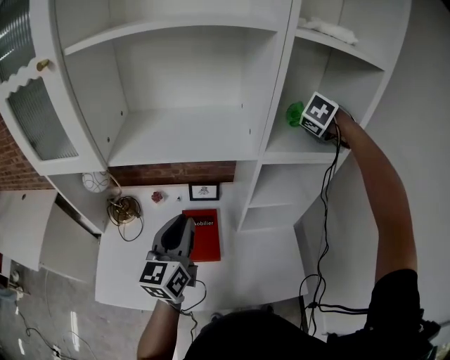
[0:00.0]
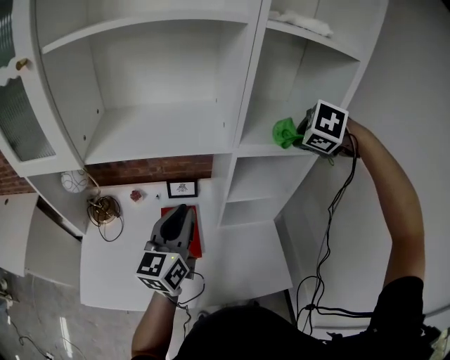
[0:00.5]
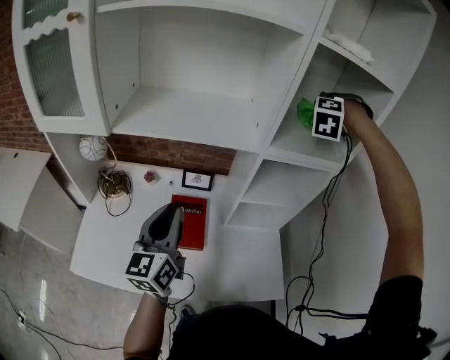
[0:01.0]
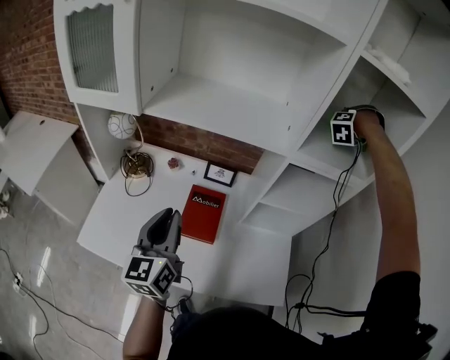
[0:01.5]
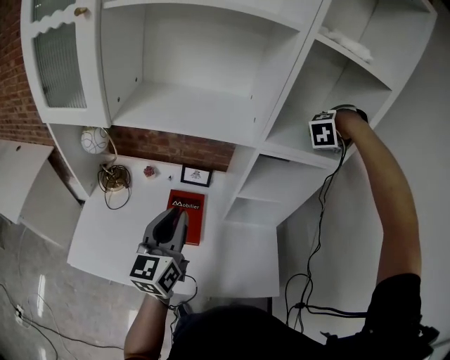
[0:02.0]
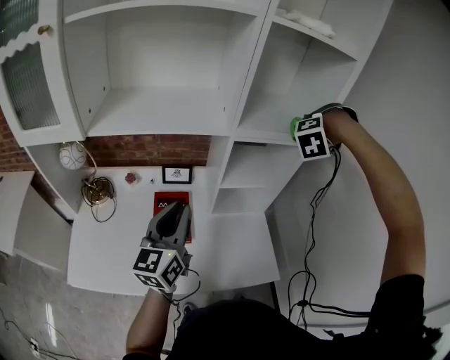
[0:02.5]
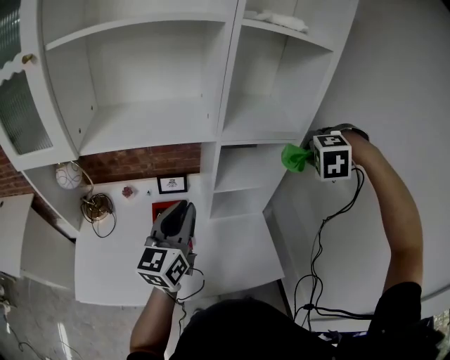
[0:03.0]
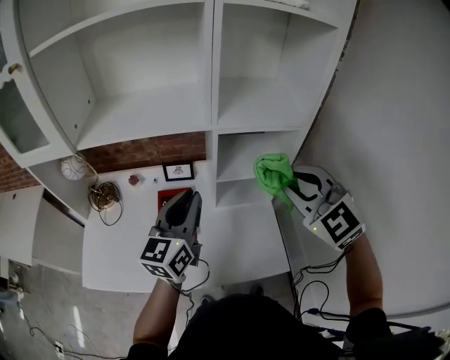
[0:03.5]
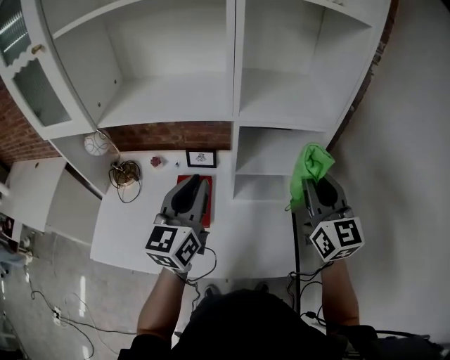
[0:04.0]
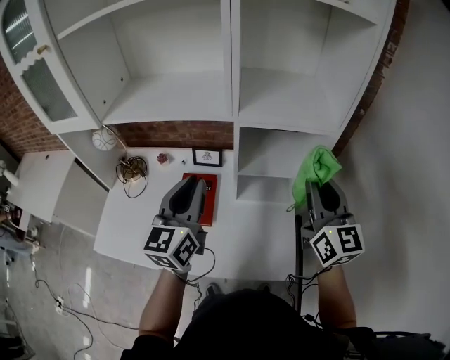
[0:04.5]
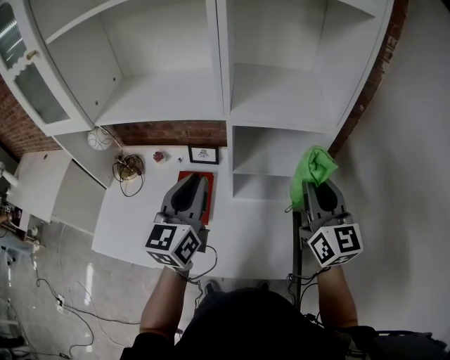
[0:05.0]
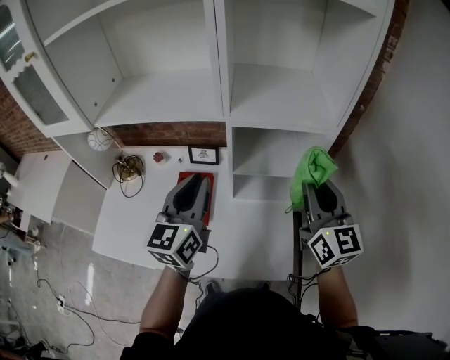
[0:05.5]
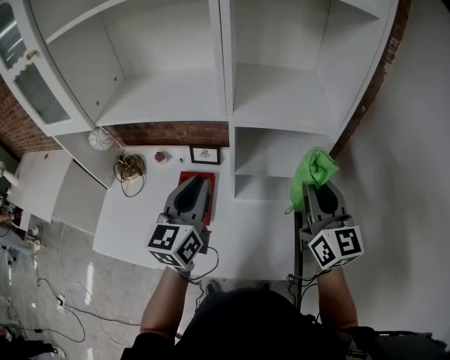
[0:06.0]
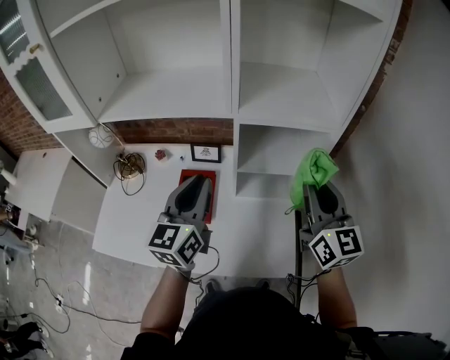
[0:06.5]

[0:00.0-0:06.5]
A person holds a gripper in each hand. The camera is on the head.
0:00.0 to 0:02.0: The right gripper goes forward and backward, about 20 cm each way, reversing 2 times, and rotates around the line of its fingers by some 50 degrees, counterclockwise from behind.
0:02.0 to 0:04.5: The left gripper shifts by about 10 cm. Meanwhile the right gripper changes place by about 20 cm, and tips its fingers upward by approximately 50 degrees.
0:04.5 to 0:06.5: The grippers move only a little.

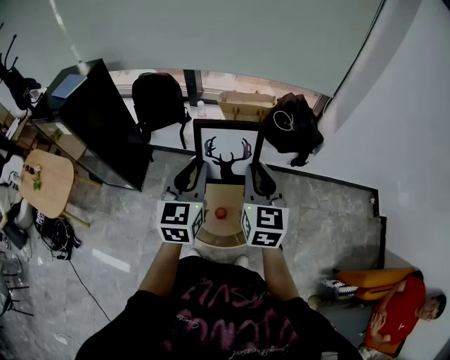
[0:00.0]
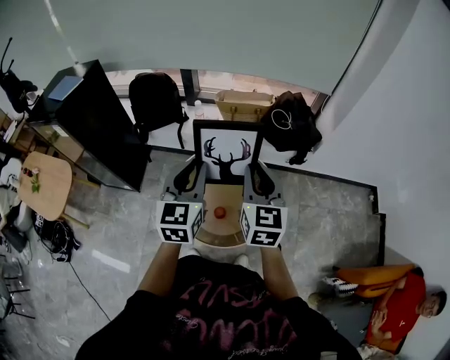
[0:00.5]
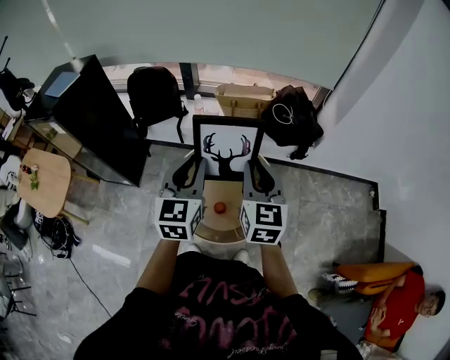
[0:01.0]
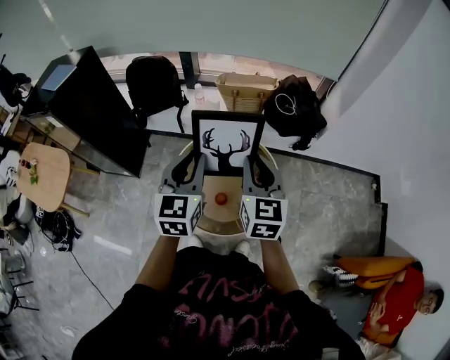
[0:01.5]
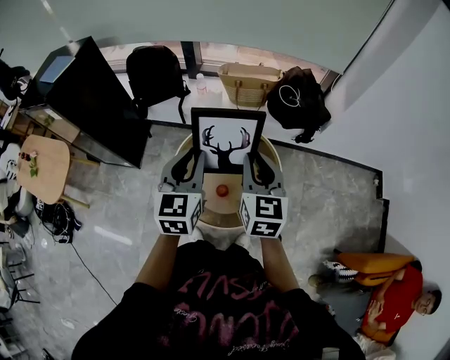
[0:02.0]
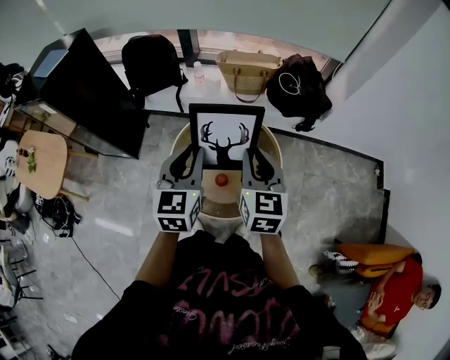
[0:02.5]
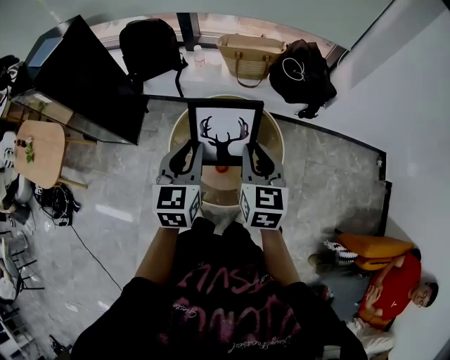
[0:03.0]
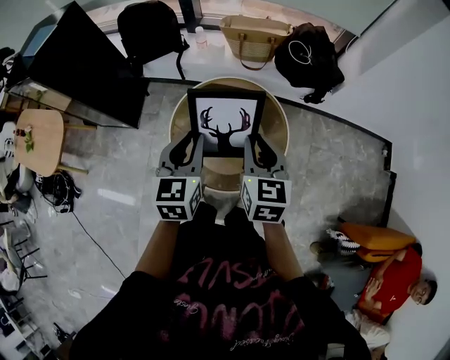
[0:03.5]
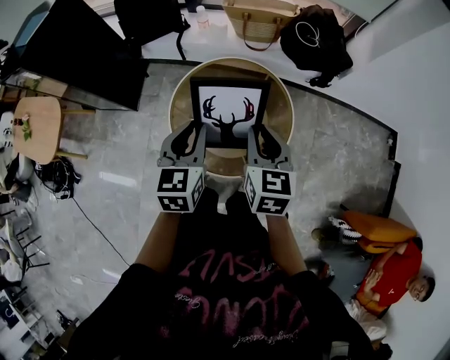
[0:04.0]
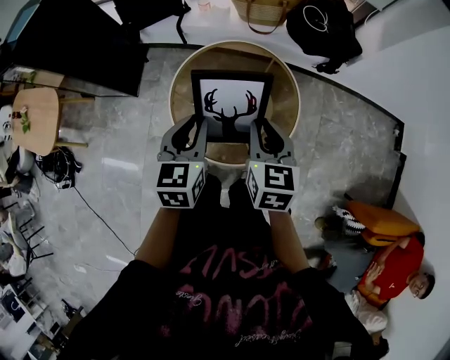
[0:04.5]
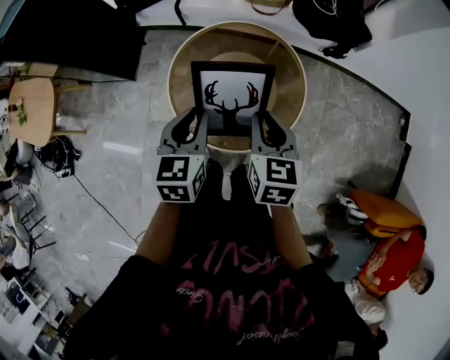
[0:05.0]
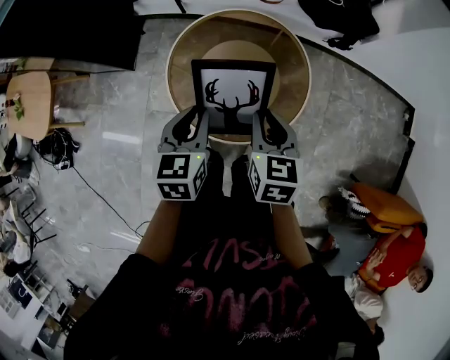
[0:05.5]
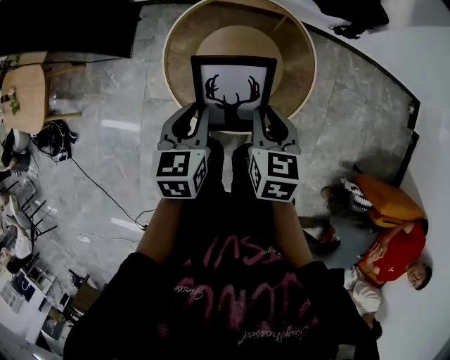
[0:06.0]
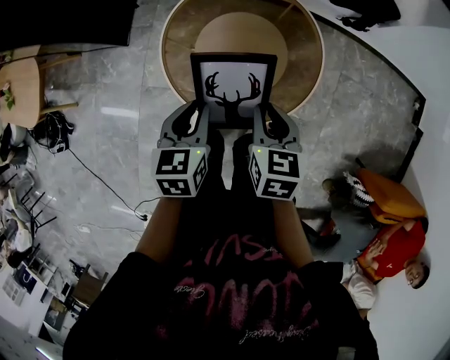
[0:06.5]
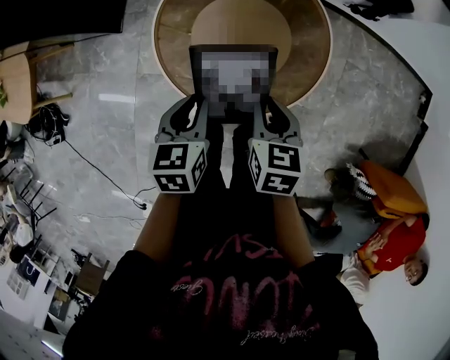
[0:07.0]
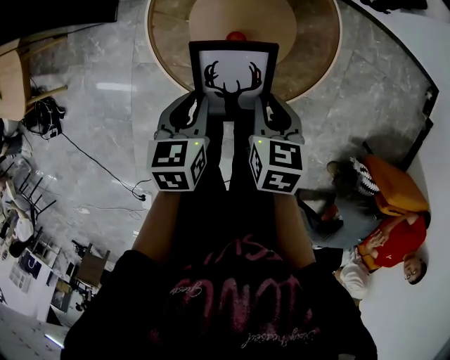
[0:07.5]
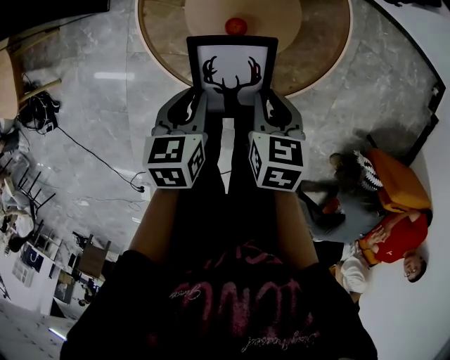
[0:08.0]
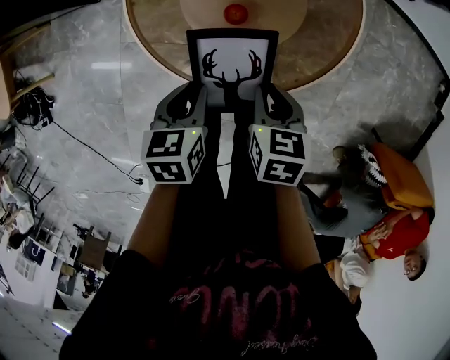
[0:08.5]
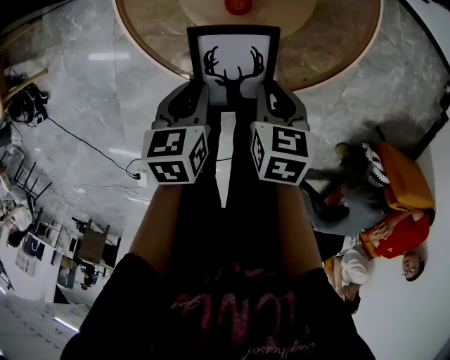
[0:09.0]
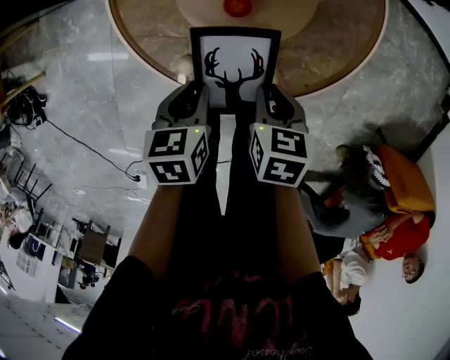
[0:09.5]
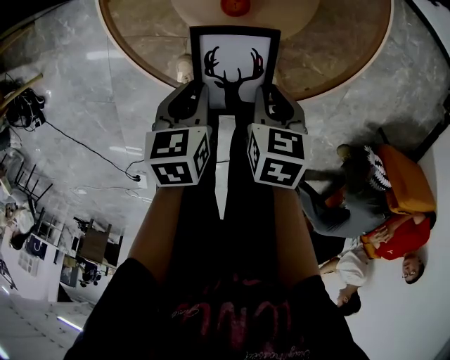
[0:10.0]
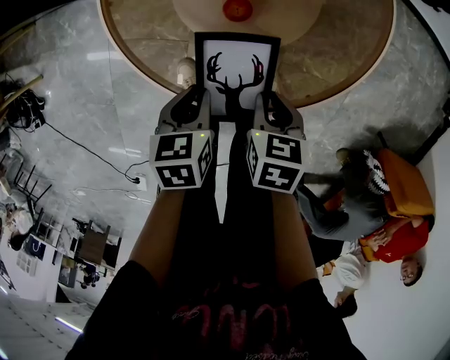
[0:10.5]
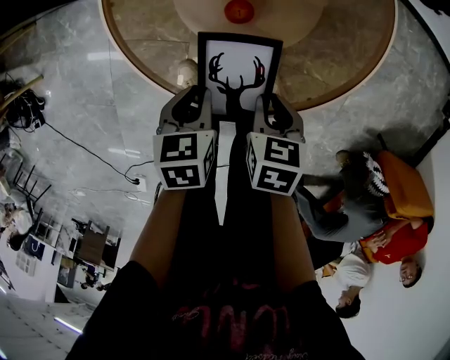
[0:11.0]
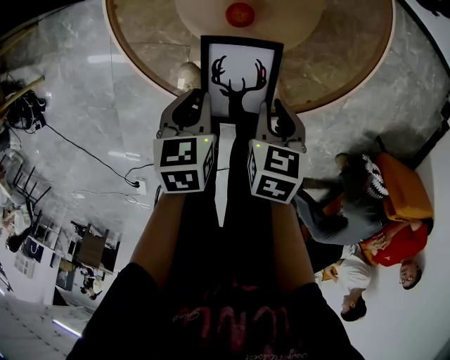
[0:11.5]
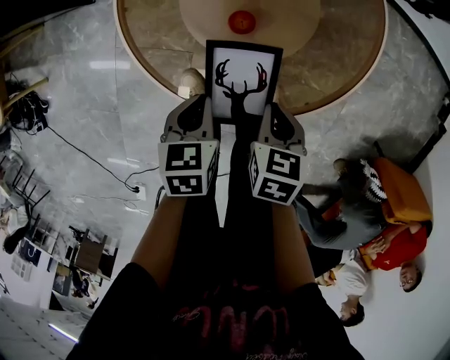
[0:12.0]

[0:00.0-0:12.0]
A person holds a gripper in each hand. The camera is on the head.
0:00.0 to 0:02.0: Both grippers travel together downward, about 5 cm.
0:02.0 to 0:04.0: Both grippers travel together downward, roughly 10 cm.
0:04.0 to 0:06.0: The grippers both shift downward by roughly 15 cm.
0:06.0 to 0:08.0: Both grippers move downward, about 15 cm.
0:08.0 to 0:10.0: Both grippers travel together downward, roughly 15 cm.
0:10.0 to 0:12.0: There are only small adjustments of the grippers.

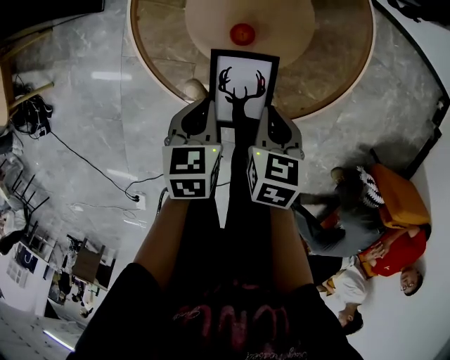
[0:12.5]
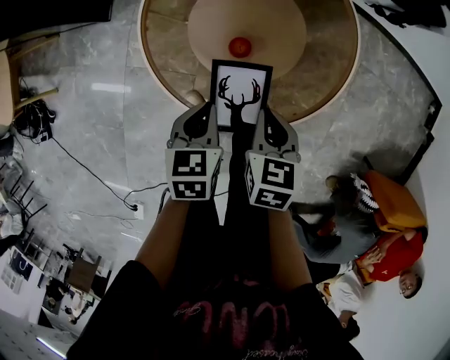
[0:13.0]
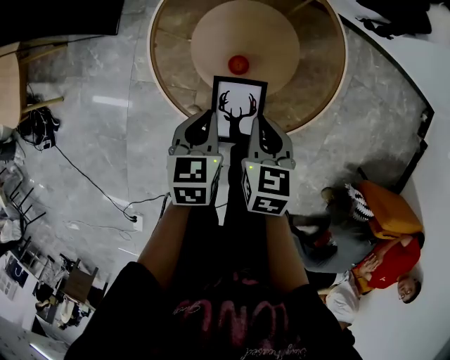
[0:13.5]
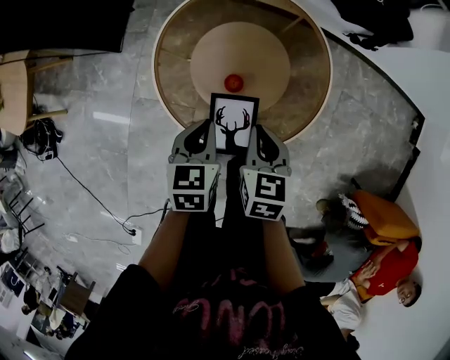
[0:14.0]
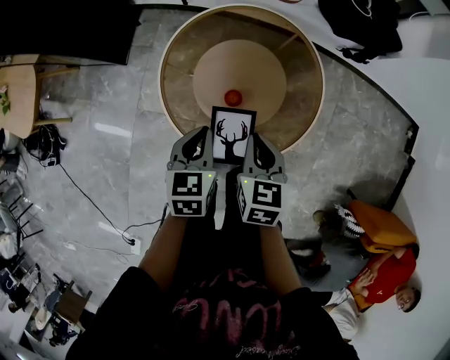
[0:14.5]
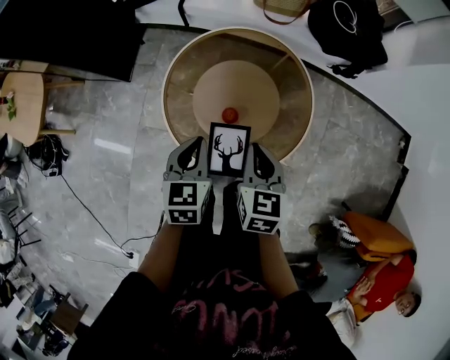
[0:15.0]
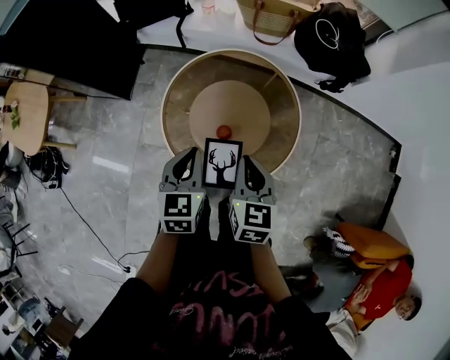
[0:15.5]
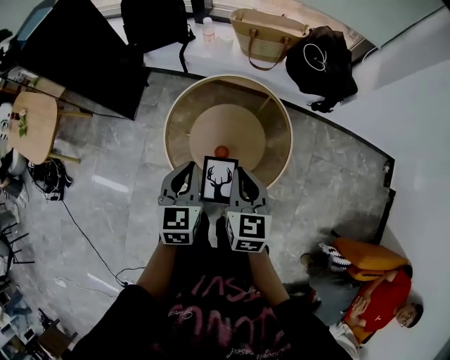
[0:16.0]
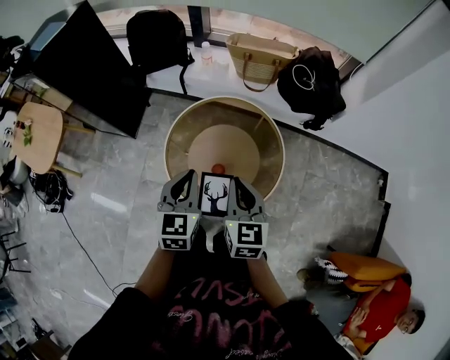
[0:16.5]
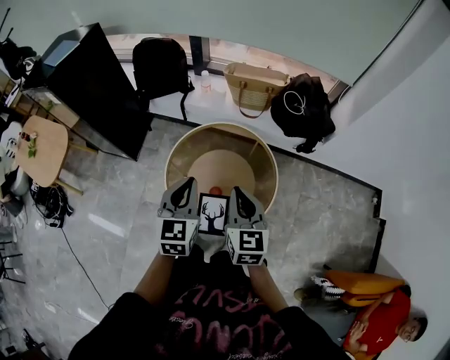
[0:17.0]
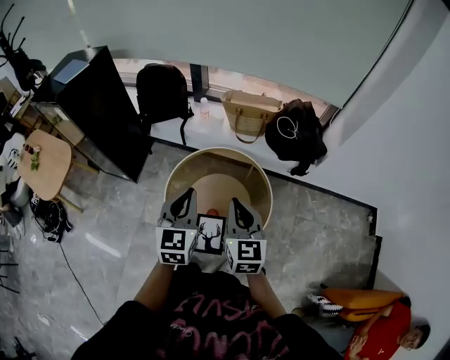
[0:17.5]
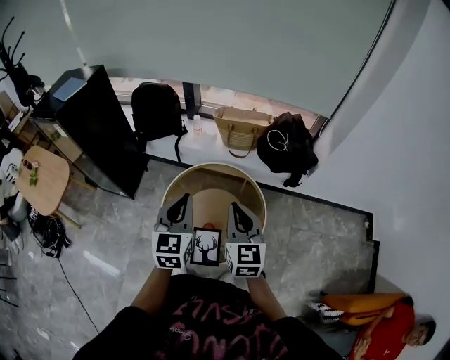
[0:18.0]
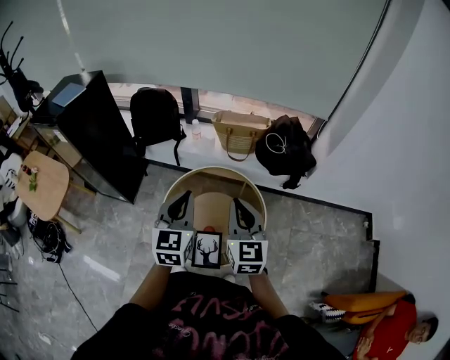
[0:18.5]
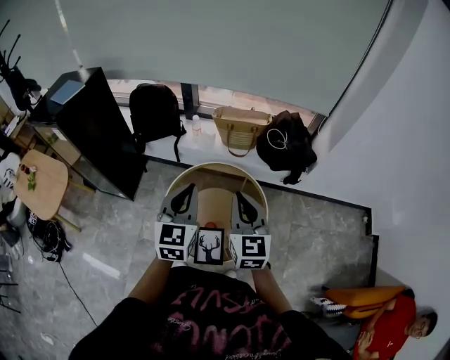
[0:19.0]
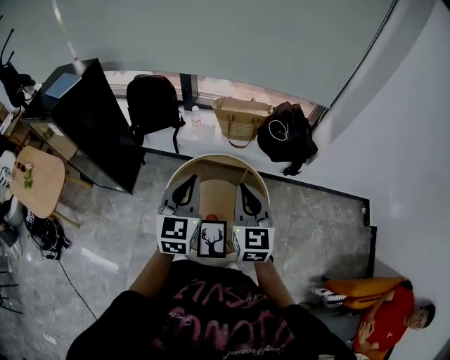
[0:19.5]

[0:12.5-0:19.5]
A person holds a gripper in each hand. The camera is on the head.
0:12.5 to 0:14.5: The grippers both shift upward by roughly 15 cm.
0:14.5 to 0:16.0: Both grippers travel together upward, some 15 cm.
0:16.0 to 0:17.5: Both grippers travel together upward, approximately 15 cm.
0:17.5 to 0:19.5: The two grippers go roughly 5 cm upward.

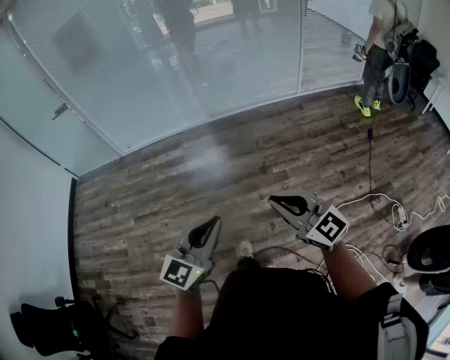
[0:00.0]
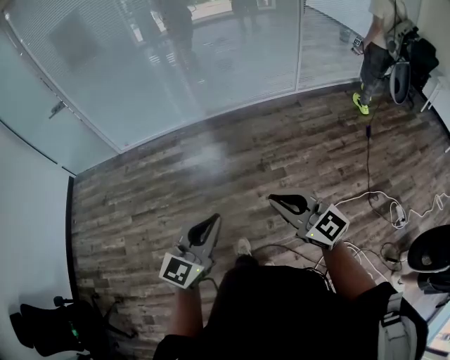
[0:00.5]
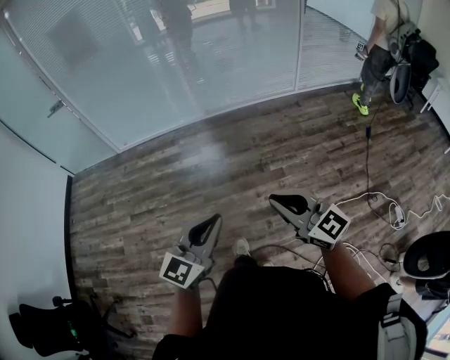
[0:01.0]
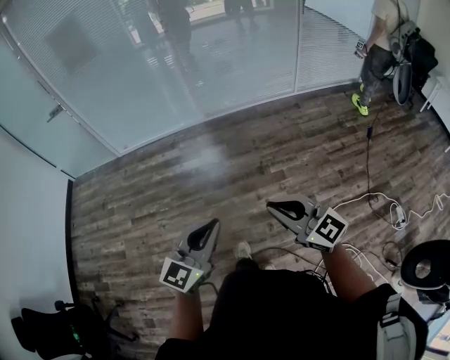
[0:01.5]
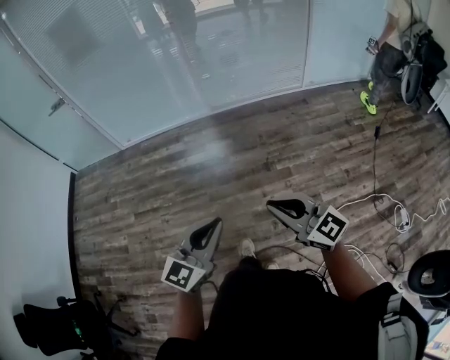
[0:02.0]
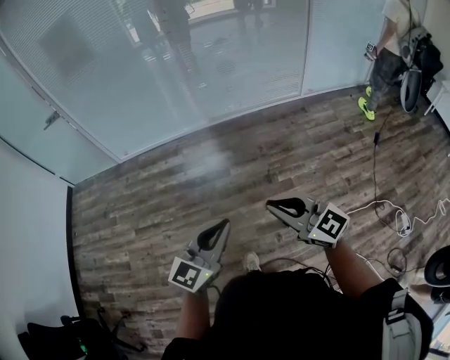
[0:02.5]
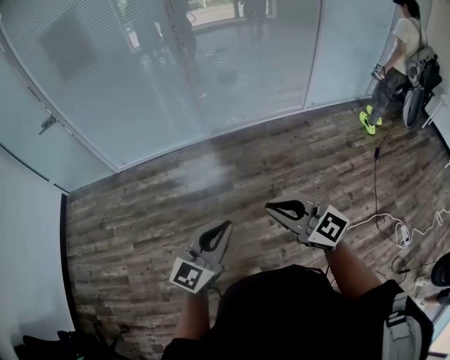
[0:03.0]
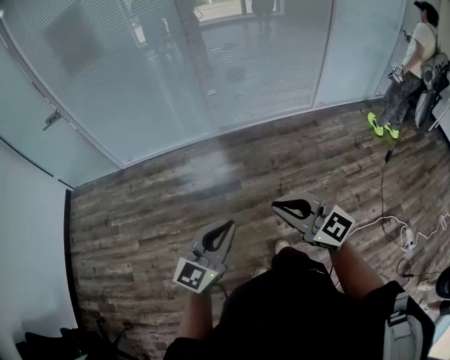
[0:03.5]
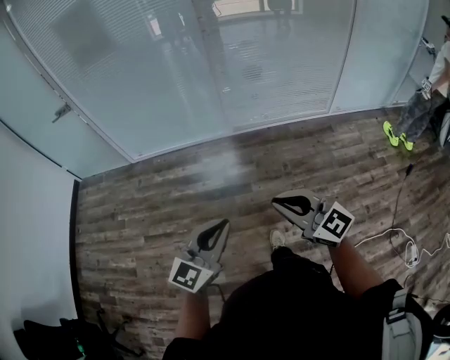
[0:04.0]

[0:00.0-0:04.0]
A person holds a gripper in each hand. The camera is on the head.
0:00.0 to 0:02.0: The grippers move only a little.
0:02.0 to 0:04.0: The grippers both shift forward by some 25 cm.
